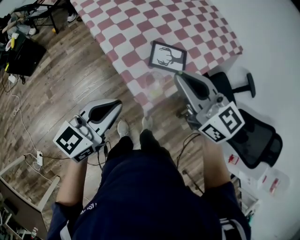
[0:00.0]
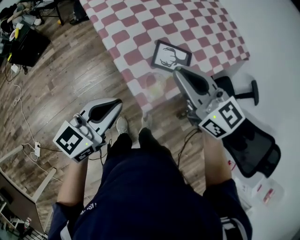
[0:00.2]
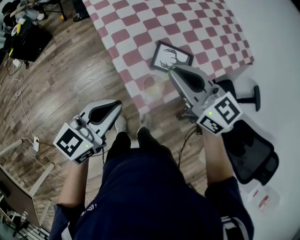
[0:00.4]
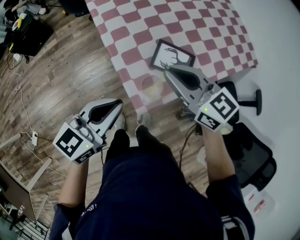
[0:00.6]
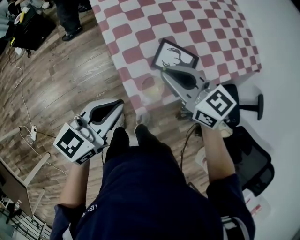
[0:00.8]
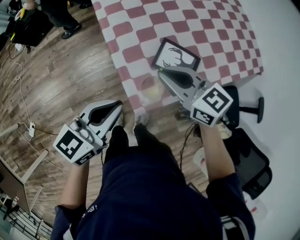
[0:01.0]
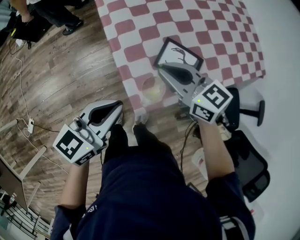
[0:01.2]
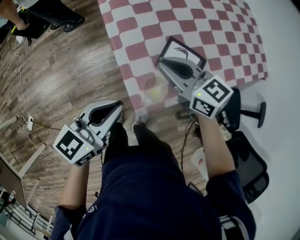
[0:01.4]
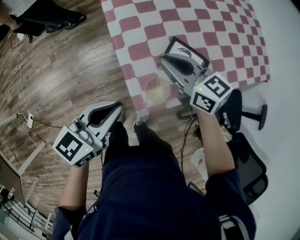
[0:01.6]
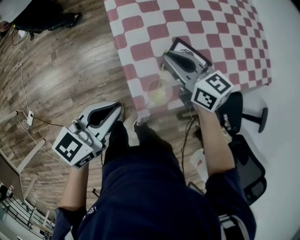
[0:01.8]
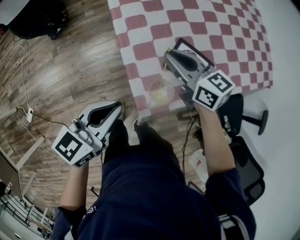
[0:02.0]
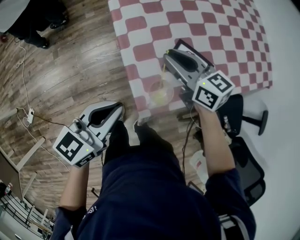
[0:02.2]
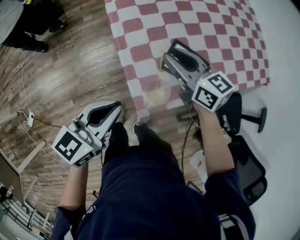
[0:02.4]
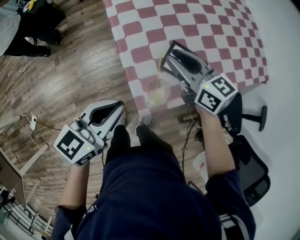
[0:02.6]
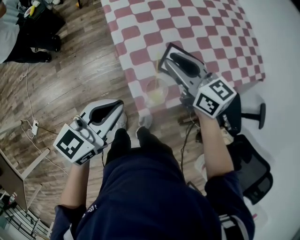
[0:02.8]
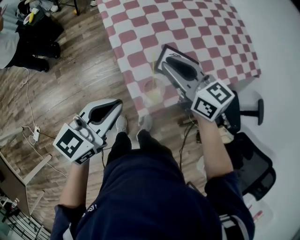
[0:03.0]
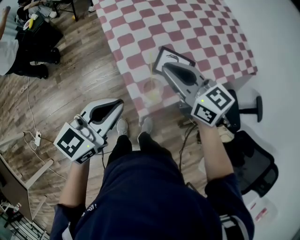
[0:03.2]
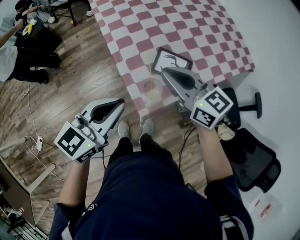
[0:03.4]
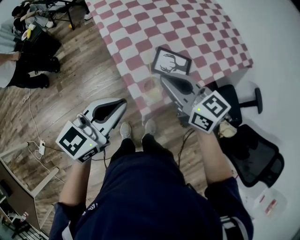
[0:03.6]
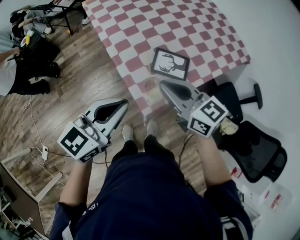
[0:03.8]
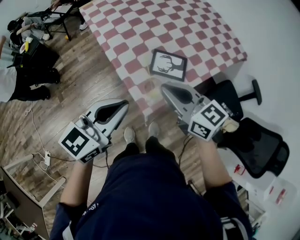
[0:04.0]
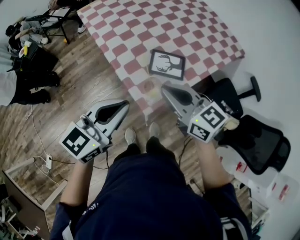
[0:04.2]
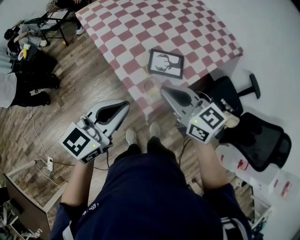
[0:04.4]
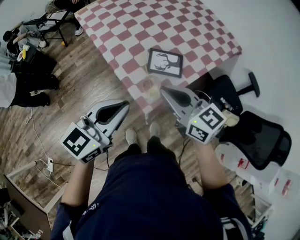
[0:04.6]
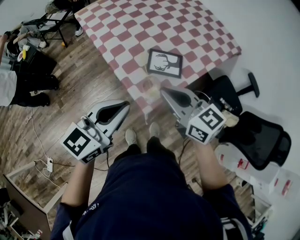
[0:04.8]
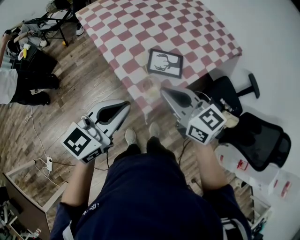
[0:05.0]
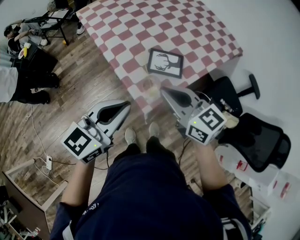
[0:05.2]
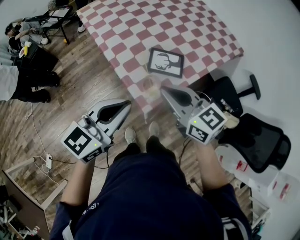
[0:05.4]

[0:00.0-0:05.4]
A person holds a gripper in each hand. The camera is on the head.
0:00.0 to 0:01.4: The left gripper shifts approximately 5 cm downward. The right gripper shifts about 20 cm downward and forward, and changes its angle by some 30 degrees.
0:01.4 to 0:02.8: There are only small adjustments of the grippers.
0:02.8 to 0:04.0: The right gripper heads backward and upward, covering about 15 cm, and closes its fingers, while the left gripper moves upward, some 10 cm.
0:04.0 to 0:05.4: The grippers make only small movements.

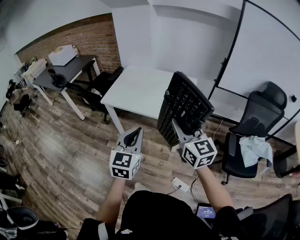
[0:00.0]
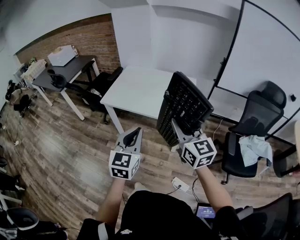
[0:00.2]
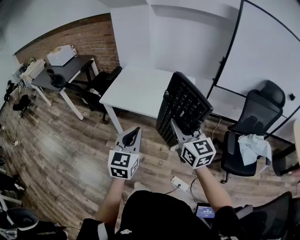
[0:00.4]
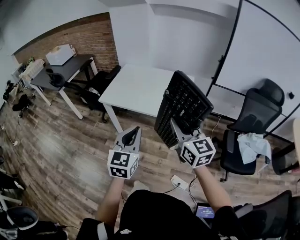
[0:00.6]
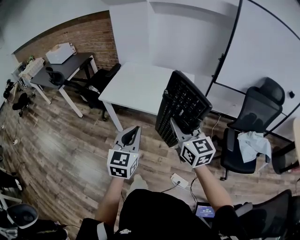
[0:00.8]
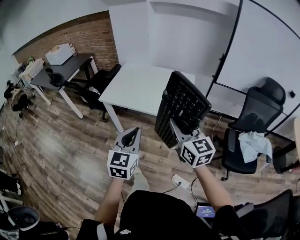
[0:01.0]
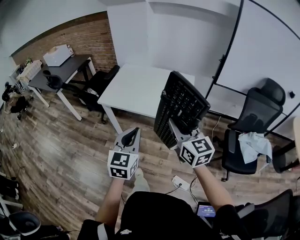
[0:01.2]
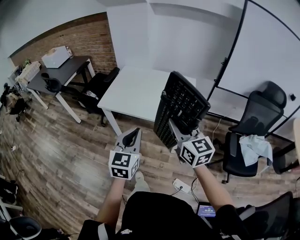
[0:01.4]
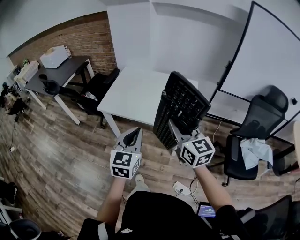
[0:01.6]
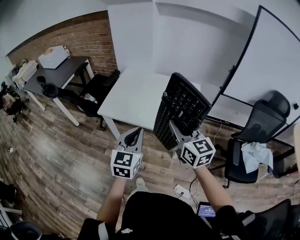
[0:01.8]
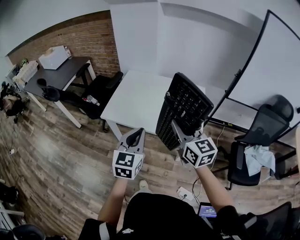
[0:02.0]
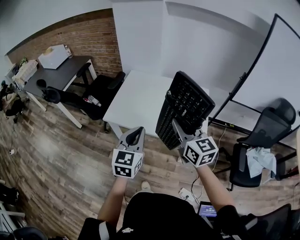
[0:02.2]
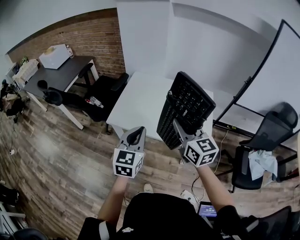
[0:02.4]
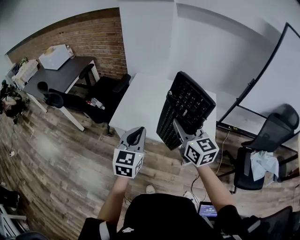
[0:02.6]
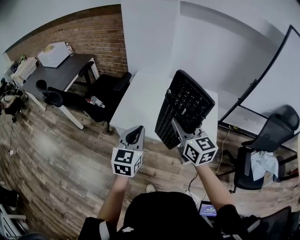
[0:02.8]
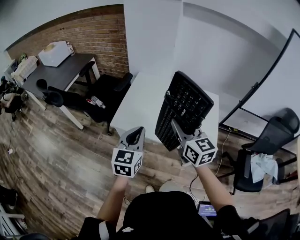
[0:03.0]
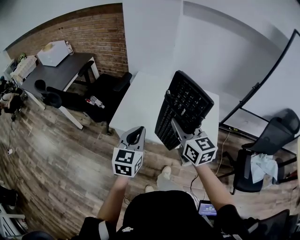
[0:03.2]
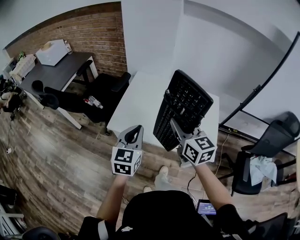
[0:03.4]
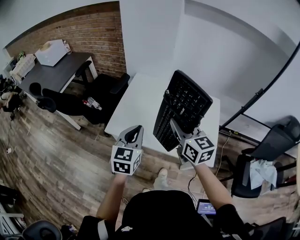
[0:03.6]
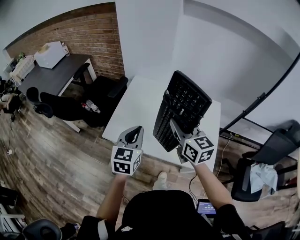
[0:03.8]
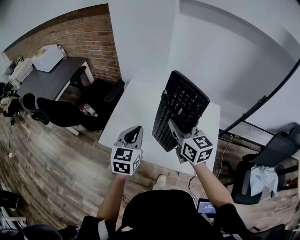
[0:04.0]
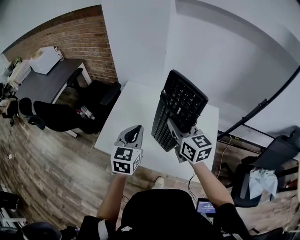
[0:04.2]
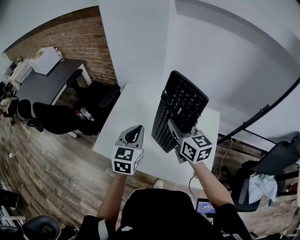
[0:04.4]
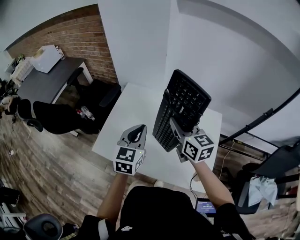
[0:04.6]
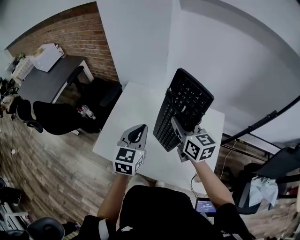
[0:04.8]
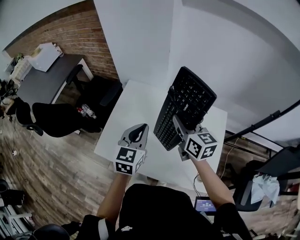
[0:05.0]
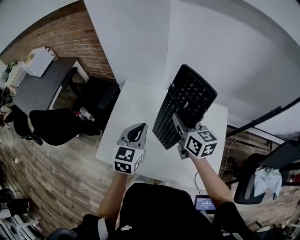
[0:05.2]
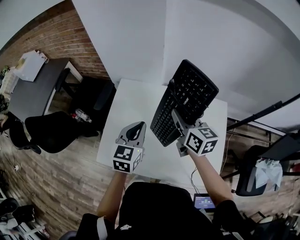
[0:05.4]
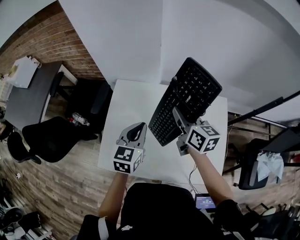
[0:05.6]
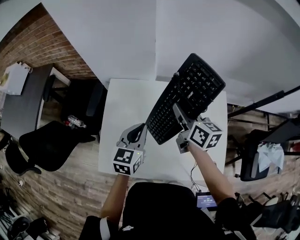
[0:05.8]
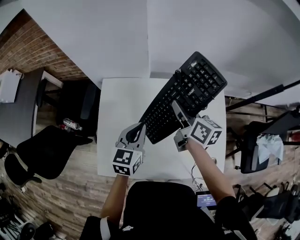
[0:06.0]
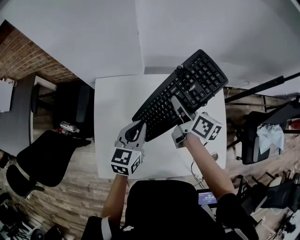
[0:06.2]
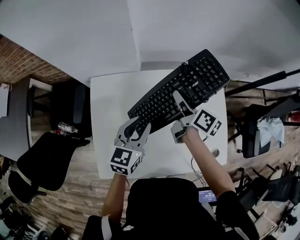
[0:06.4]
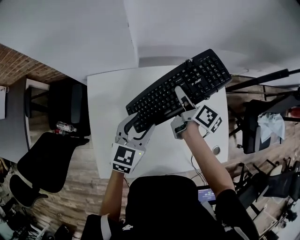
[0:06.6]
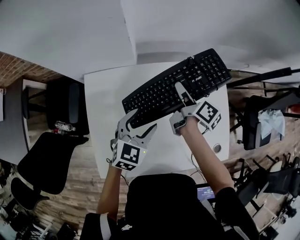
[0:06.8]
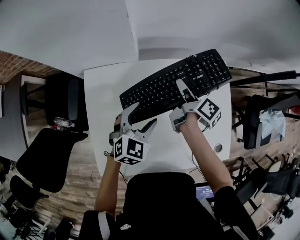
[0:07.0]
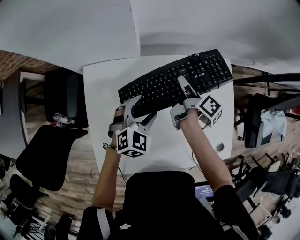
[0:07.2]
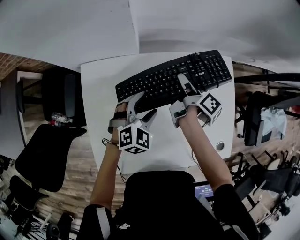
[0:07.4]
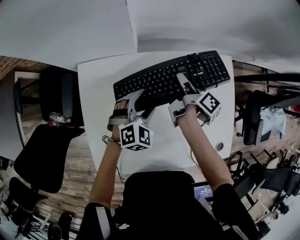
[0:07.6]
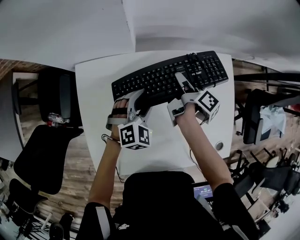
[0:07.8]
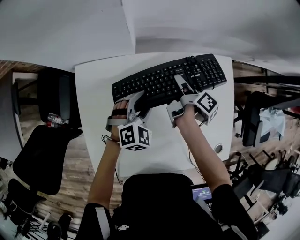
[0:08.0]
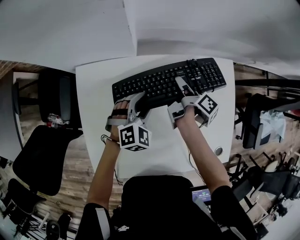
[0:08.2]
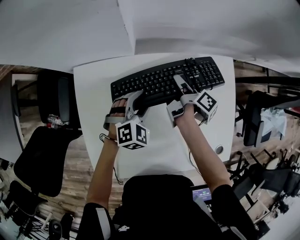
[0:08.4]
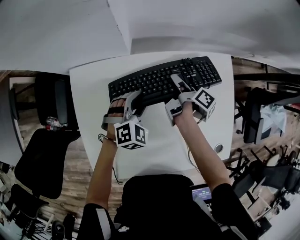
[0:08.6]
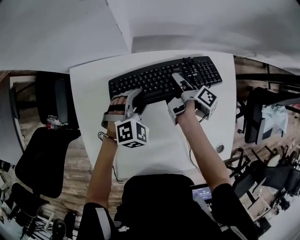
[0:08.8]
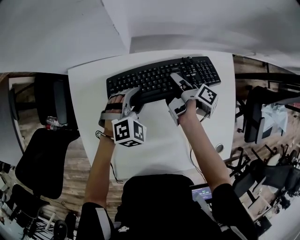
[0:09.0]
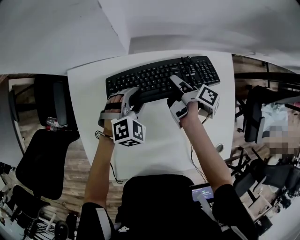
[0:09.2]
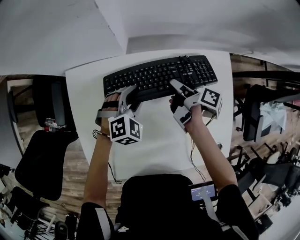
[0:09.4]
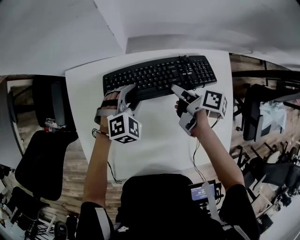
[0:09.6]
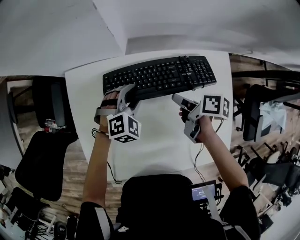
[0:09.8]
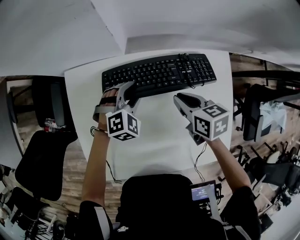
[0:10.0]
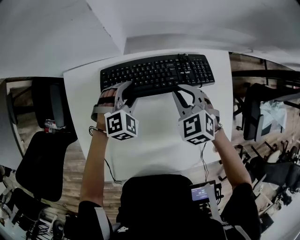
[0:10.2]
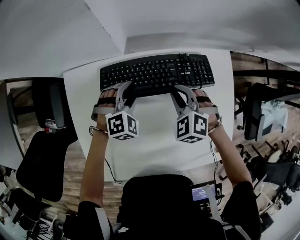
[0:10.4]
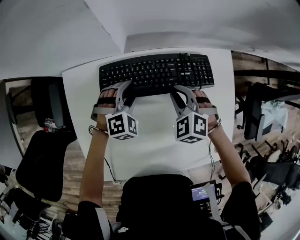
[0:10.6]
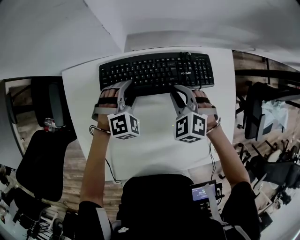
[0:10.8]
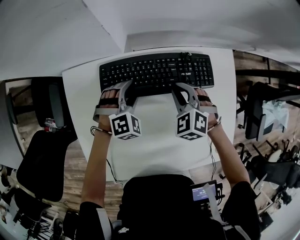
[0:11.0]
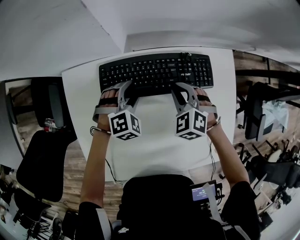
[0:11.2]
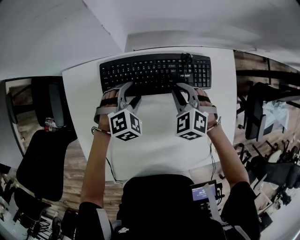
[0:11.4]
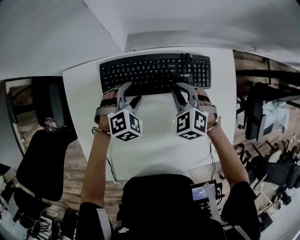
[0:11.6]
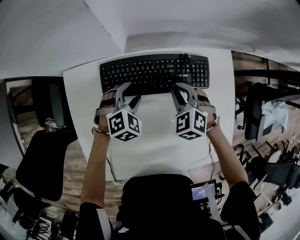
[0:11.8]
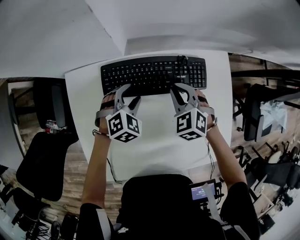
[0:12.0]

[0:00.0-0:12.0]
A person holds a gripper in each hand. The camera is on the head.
0:00.0 to 0:01.6: The grippers both shift forward by approximately 10 cm.
0:01.6 to 0:03.0: The grippers both shift forward and to the left by some 25 cm.
0:03.0 to 0:04.4: The two grippers go about 25 cm forward and to the right.
0:04.4 to 0:06.0: Both grippers move forward and downward, some 20 cm. The right gripper rotates roughly 40 degrees. The left gripper turns by approximately 20 degrees.
0:06.0 to 0:07.6: Both grippers move downward and forward, some 20 cm. The left gripper rolls clockwise, seen from behind, by some 50 degrees, and opens up. The right gripper twists roughly 50 degrees clockwise, seen from behind.
0:07.6 to 0:09.0: The left gripper ends up approximately 5 cm from where it was, and closes its fingers; the right gripper goes some 5 cm downward.
0:09.0 to 0:10.4: The right gripper shifts by some 5 cm, and twists roughly 140 degrees counterclockwise, seen from behind.
0:10.4 to 0:12.0: There are only small adjustments of the grippers.

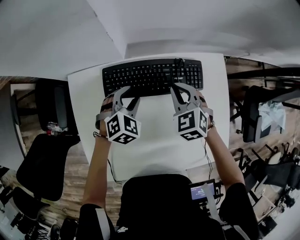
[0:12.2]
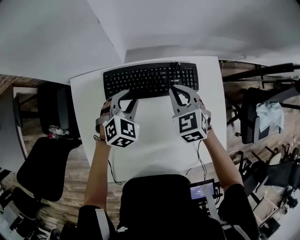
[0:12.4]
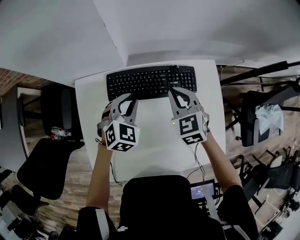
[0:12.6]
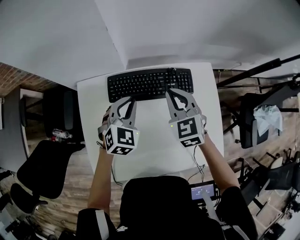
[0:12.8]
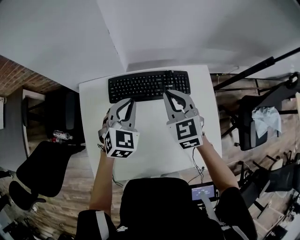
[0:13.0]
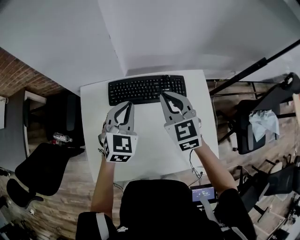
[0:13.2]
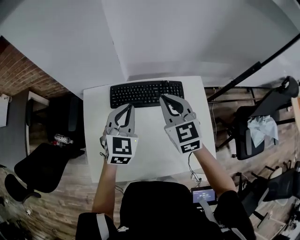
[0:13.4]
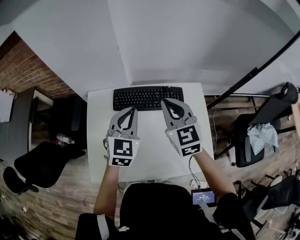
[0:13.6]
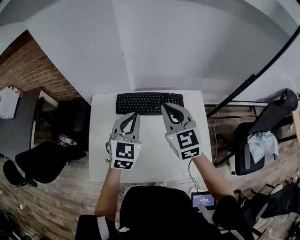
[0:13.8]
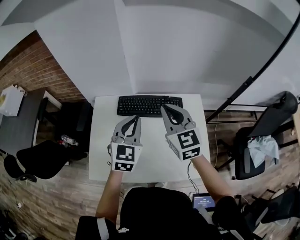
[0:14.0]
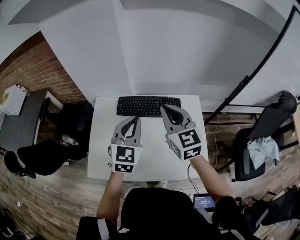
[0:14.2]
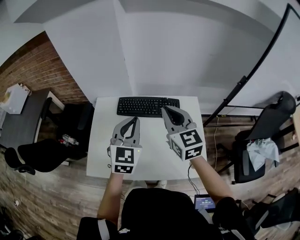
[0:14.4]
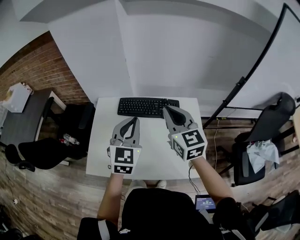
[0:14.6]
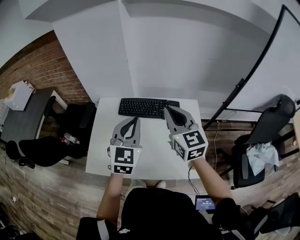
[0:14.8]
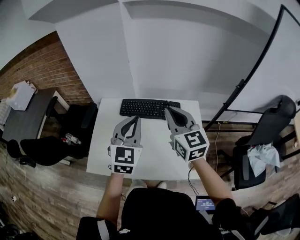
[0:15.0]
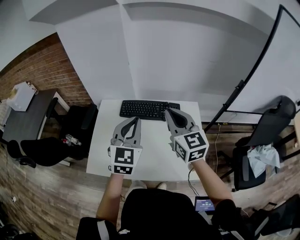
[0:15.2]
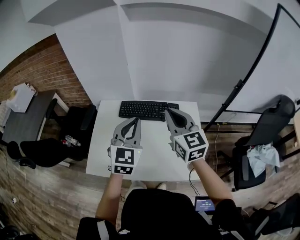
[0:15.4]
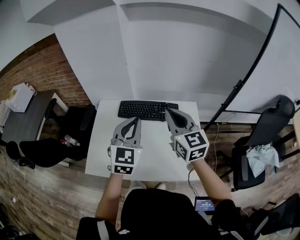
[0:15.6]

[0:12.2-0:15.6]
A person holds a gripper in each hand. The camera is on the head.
0:12.2 to 0:13.8: The grippers both shift upward and backward by some 30 cm. The right gripper angles its fingers upward, by about 30 degrees. The left gripper angles its fingers upward, by about 30 degrees, and closes.
0:13.8 to 0:15.6: The grippers both shift backward and upward by approximately 10 cm.

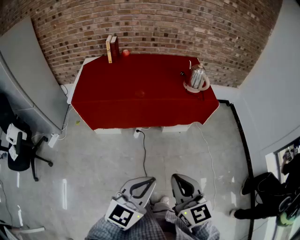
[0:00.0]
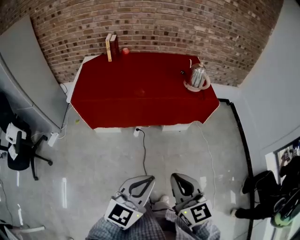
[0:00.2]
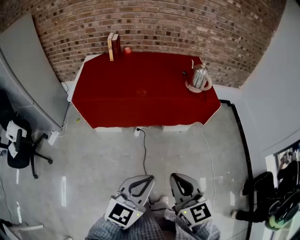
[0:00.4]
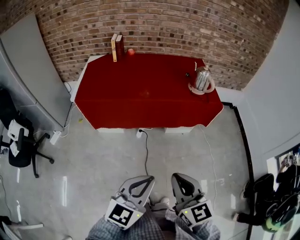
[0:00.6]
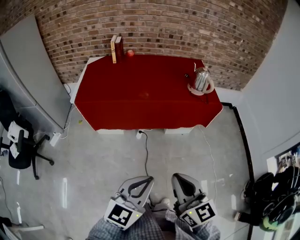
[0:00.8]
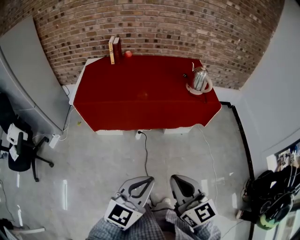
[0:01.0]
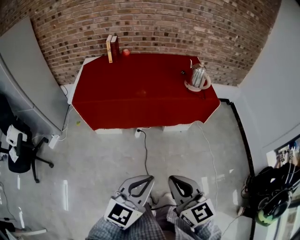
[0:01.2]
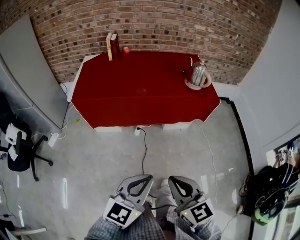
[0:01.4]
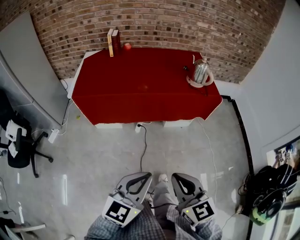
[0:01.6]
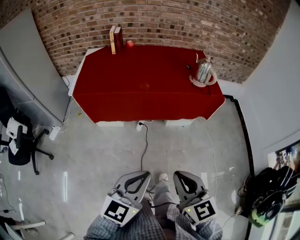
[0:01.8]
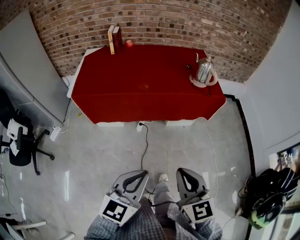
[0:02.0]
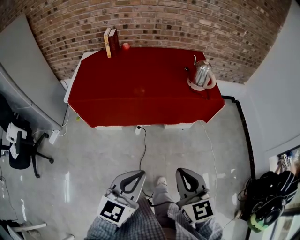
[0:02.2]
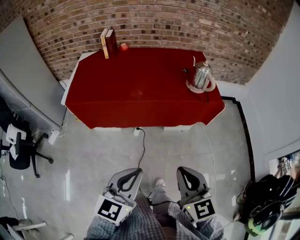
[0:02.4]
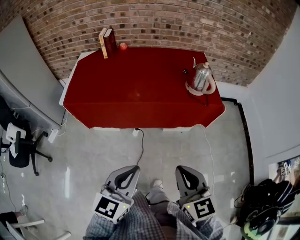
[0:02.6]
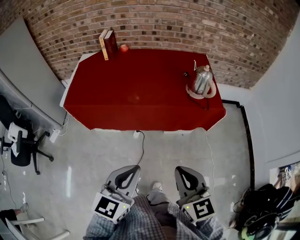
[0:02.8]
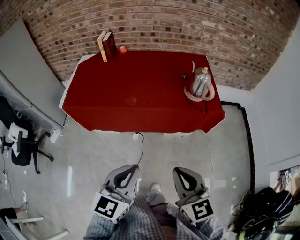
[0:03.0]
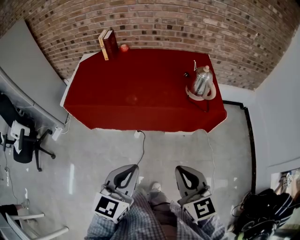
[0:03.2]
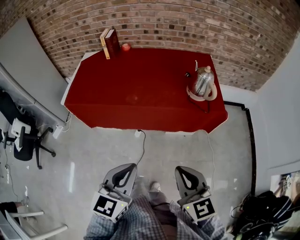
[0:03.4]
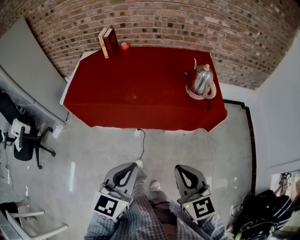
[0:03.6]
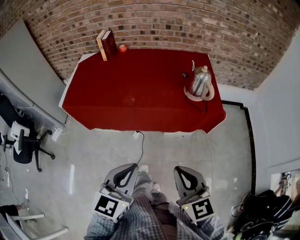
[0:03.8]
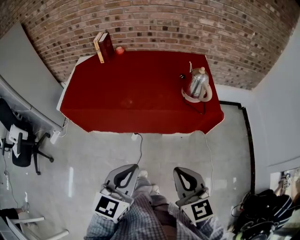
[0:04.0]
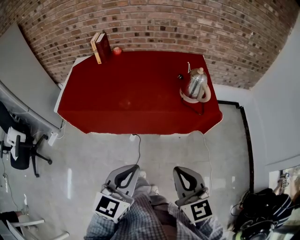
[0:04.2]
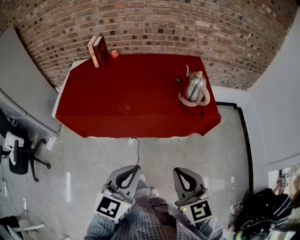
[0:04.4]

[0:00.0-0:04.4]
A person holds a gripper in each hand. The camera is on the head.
0:00.0 to 0:01.4: The grippers make only small movements.
0:01.4 to 0:03.0: The left gripper heads forward, covering approximately 20 cm, while the right gripper heads forward and to the right, covering some 20 cm.
0:03.0 to 0:04.4: The left gripper shifts by approximately 5 cm.
